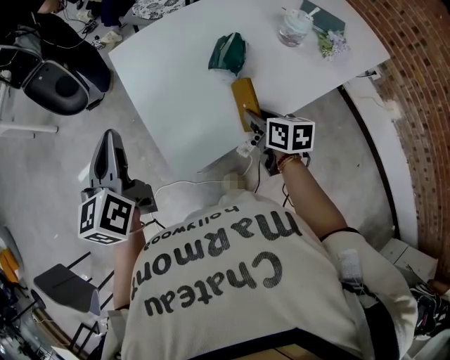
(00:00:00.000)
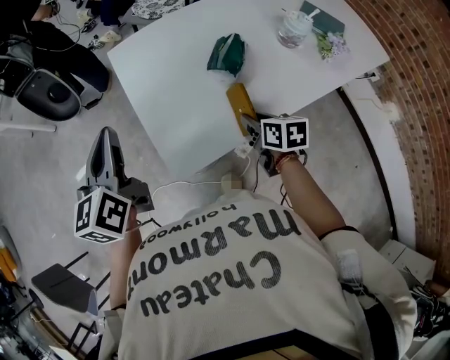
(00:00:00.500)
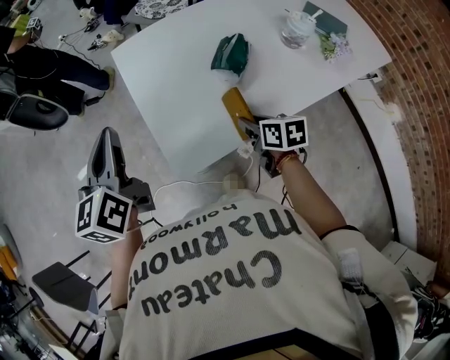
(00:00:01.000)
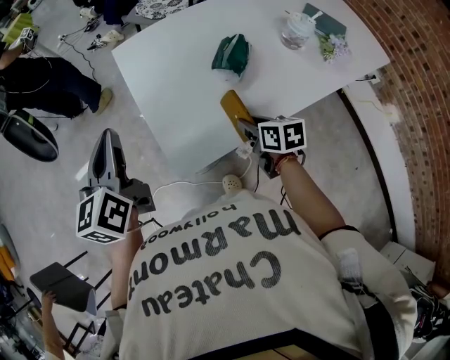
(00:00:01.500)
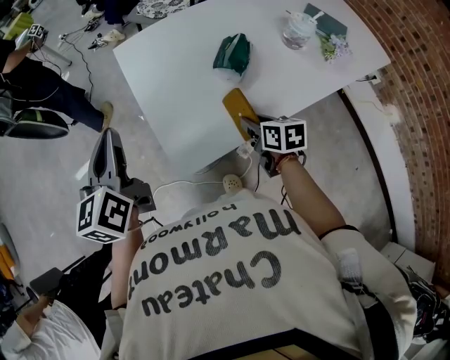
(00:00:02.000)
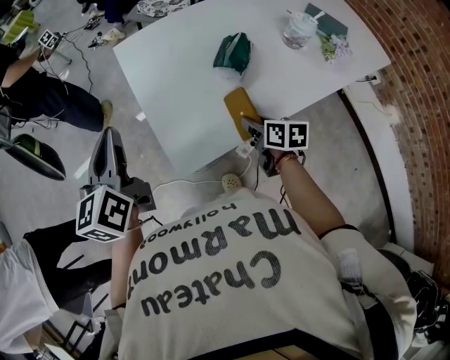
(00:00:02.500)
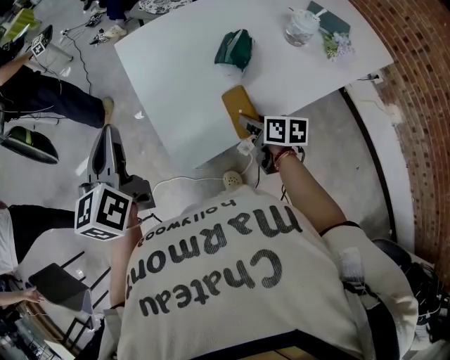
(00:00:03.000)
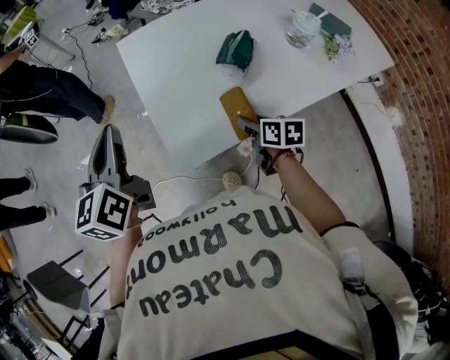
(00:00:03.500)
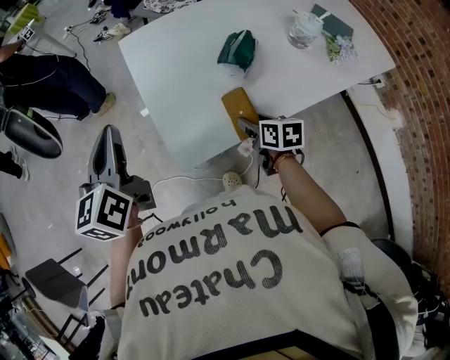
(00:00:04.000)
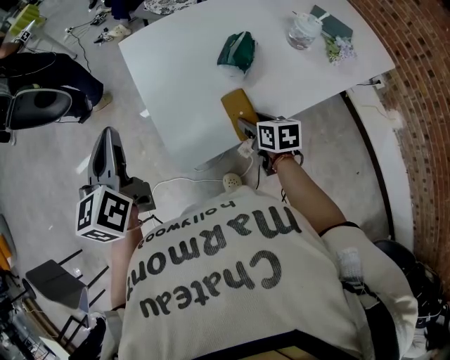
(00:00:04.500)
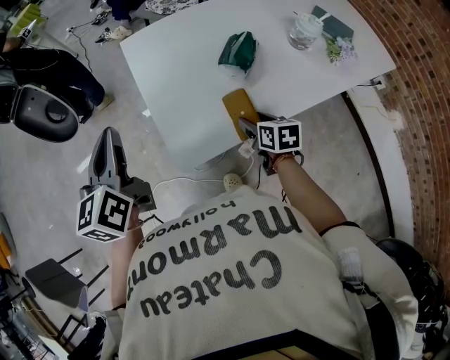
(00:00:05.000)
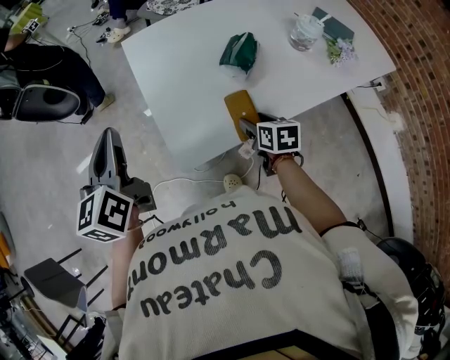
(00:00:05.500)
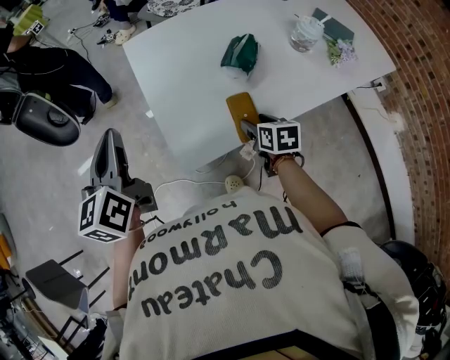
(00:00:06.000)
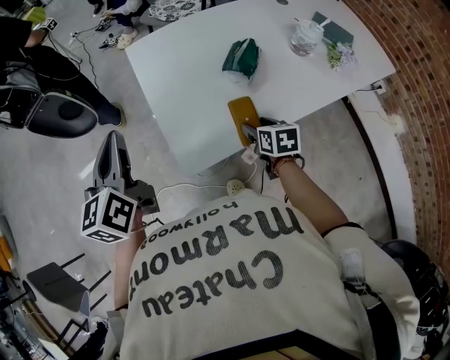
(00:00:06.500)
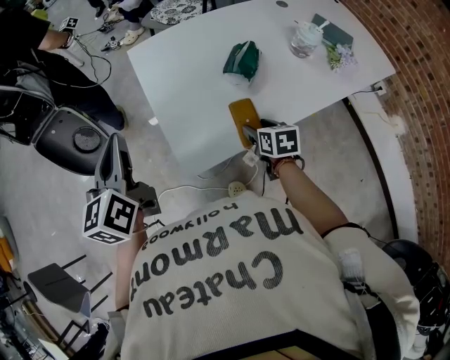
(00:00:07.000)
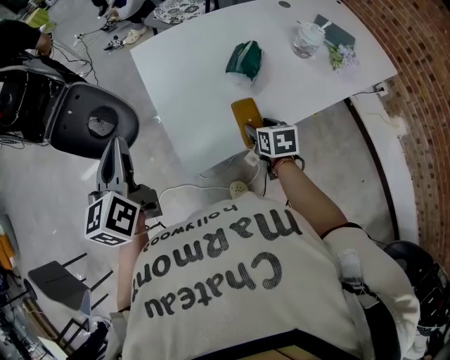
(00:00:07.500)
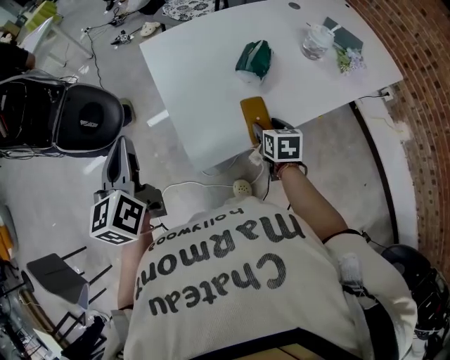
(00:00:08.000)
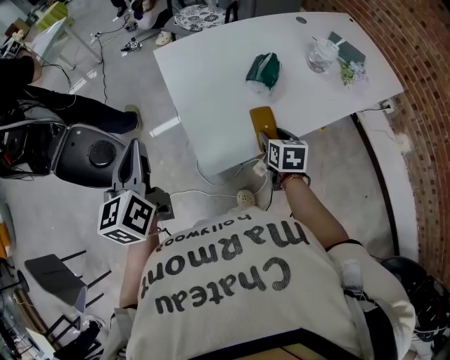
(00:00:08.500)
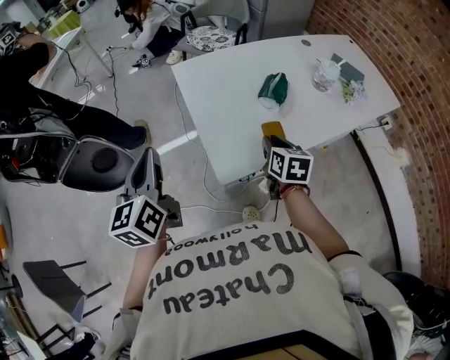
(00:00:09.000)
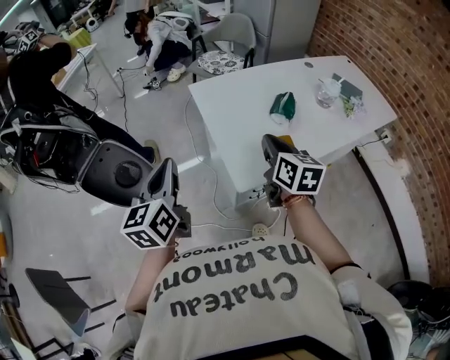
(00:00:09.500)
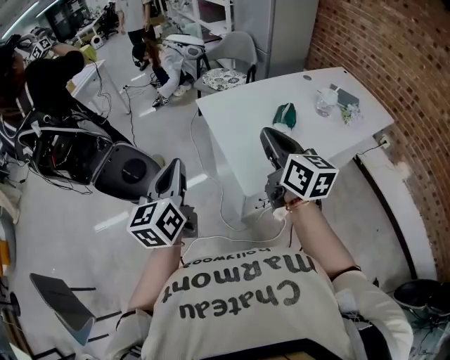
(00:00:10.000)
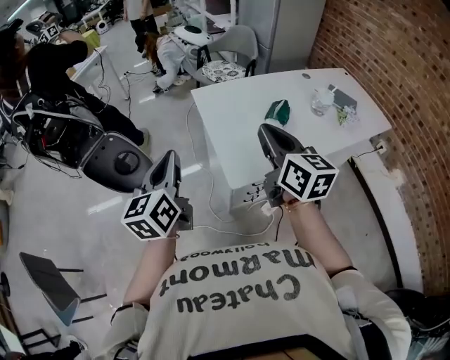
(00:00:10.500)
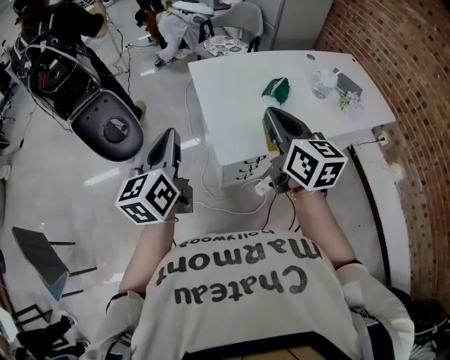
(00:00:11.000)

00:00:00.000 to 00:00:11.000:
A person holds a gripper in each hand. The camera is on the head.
00:00:00.000 to 00:00:03.500: The grippers make only small movements.
00:00:03.500 to 00:00:05.500: The right gripper opens up.
00:00:05.500 to 00:00:07.500: The grippers make only small movements.
00:00:07.500 to 00:00:09.000: The left gripper travels to the left by some 5 cm. The right gripper shifts roughly 15 cm upward and to the left, and closes.
00:00:09.000 to 00:00:11.000: The right gripper is displaced upward and backward by roughly 25 cm, and rotates approximately 30 degrees. The left gripper shifts some 10 cm backward.

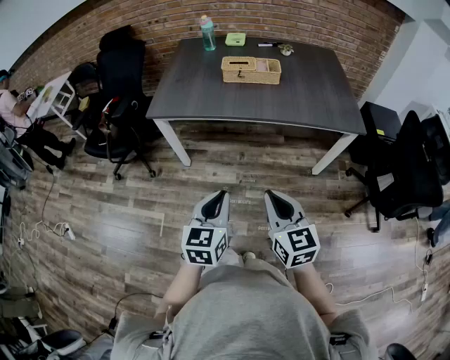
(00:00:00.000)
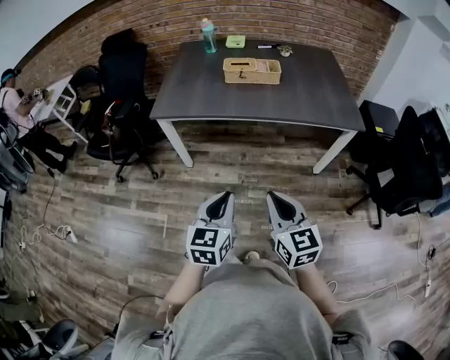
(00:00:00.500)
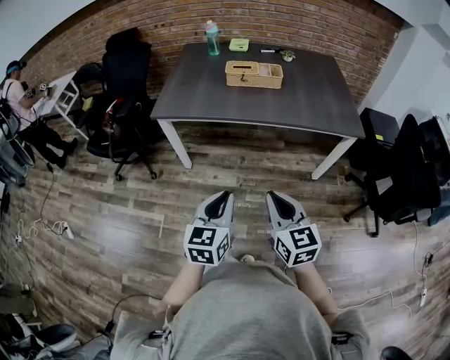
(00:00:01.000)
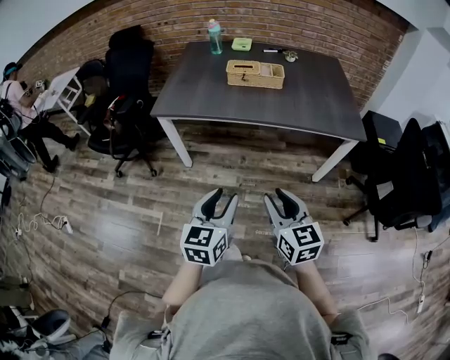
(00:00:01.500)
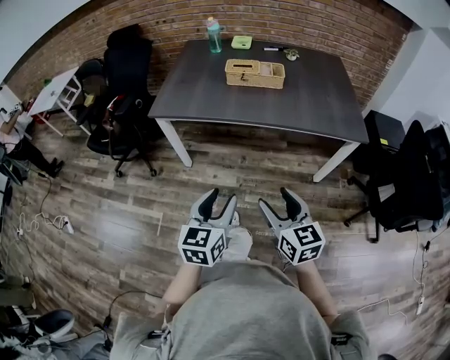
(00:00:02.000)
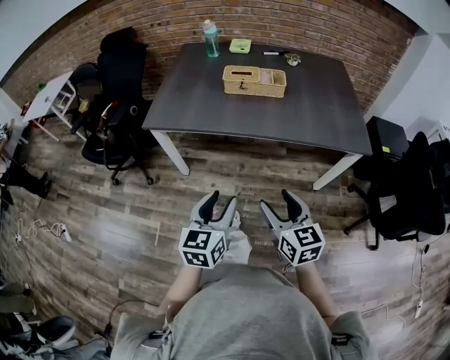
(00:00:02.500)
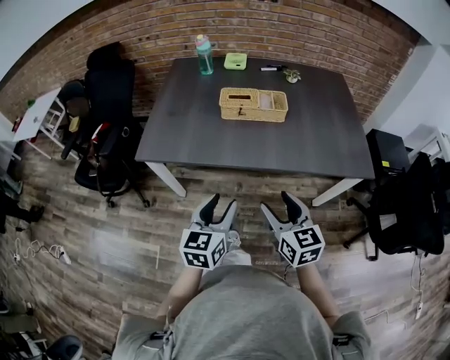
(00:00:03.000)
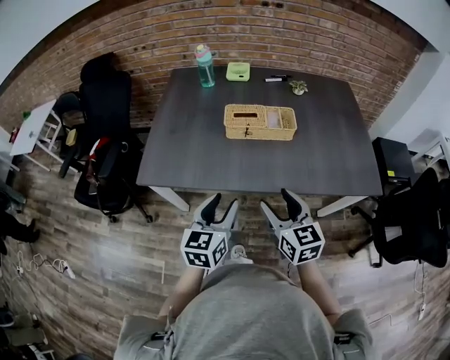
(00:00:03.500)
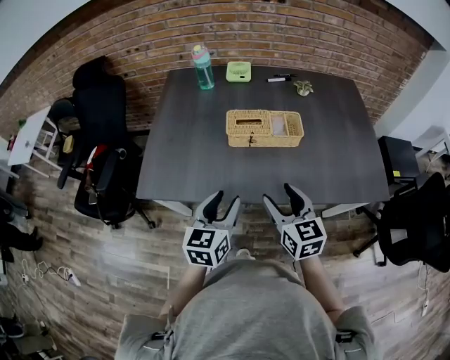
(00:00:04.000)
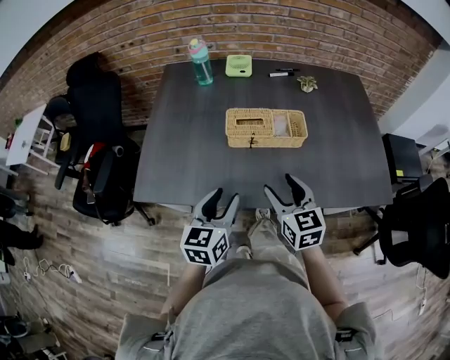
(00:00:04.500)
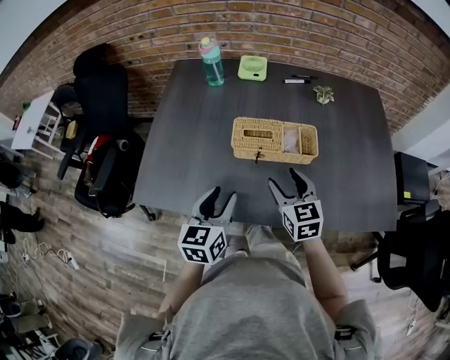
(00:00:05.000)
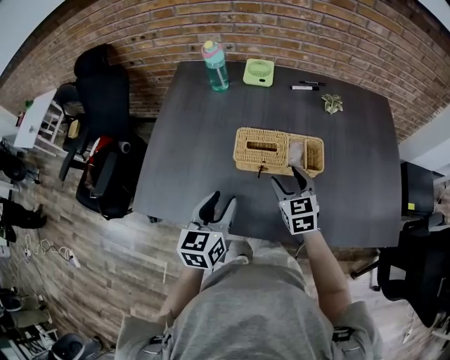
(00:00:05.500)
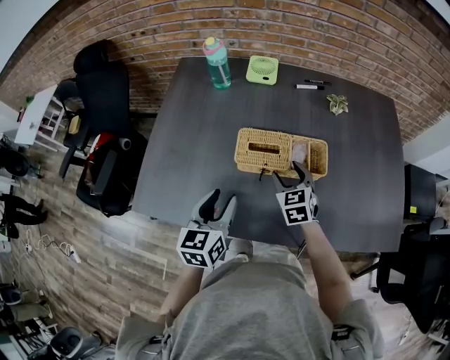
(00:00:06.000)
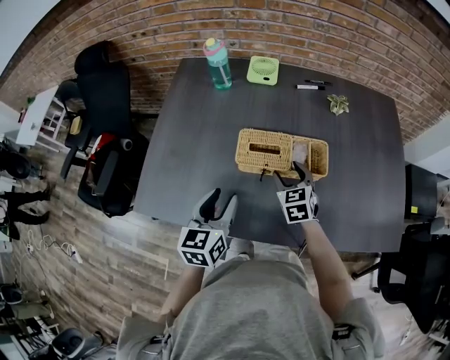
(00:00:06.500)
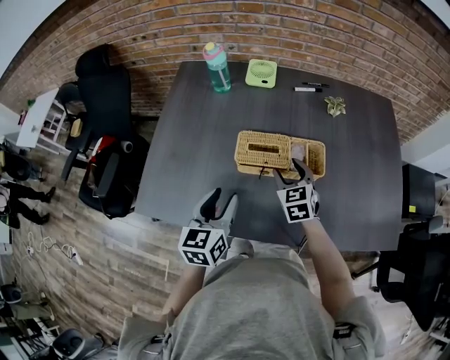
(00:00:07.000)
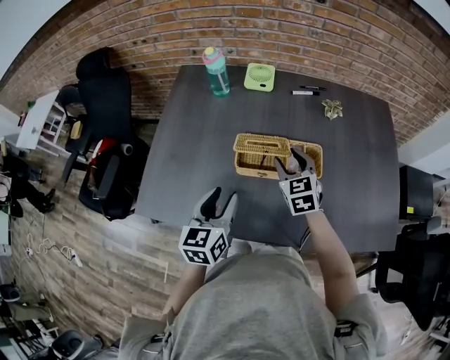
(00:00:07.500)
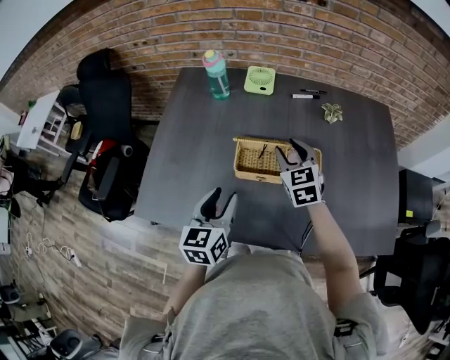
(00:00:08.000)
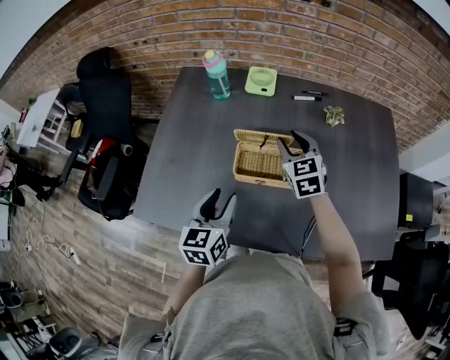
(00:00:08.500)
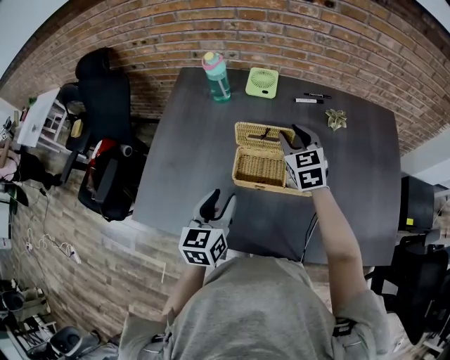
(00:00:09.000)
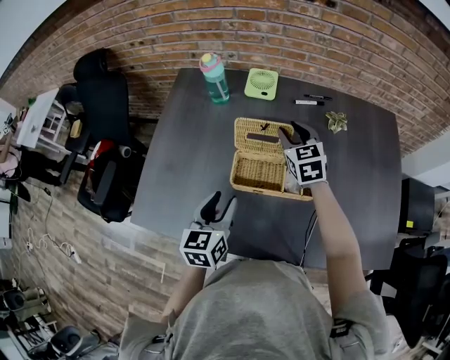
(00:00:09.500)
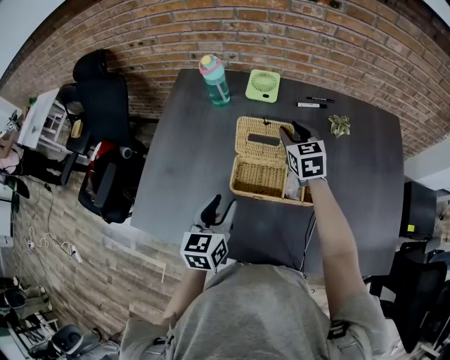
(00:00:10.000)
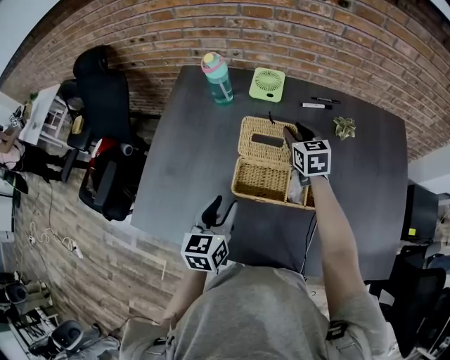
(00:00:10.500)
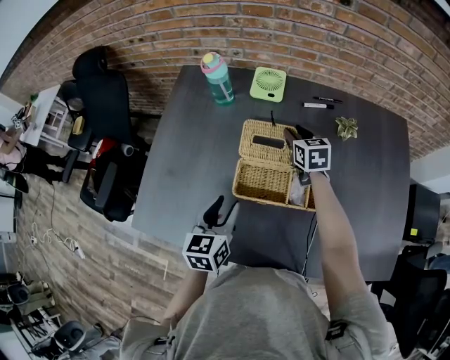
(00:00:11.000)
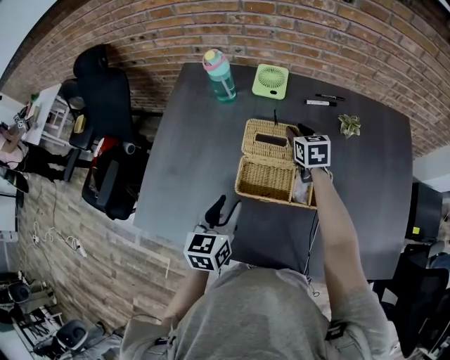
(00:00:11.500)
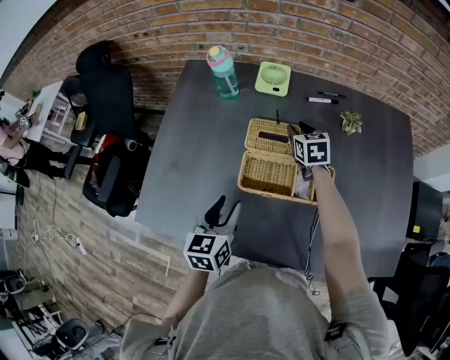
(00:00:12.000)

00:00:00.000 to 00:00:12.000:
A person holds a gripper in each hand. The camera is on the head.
00:00:00.000 to 00:00:02.000: The right gripper opens its fingers; the left gripper opens up.
00:00:02.000 to 00:00:04.000: The pair of grippers is taken forward, some 40 cm.
00:00:04.000 to 00:00:06.000: The left gripper shifts roughly 15 cm forward. Meanwhile the right gripper goes approximately 30 cm forward and downward, and swivels roughly 20 degrees.
00:00:06.000 to 00:00:08.000: The right gripper is displaced upward and forward by about 10 cm, and closes up.
00:00:08.000 to 00:00:10.000: The right gripper travels forward by about 15 cm; the left gripper is displaced forward by some 5 cm.
00:00:10.000 to 00:00:12.000: The right gripper is displaced downward by some 5 cm.

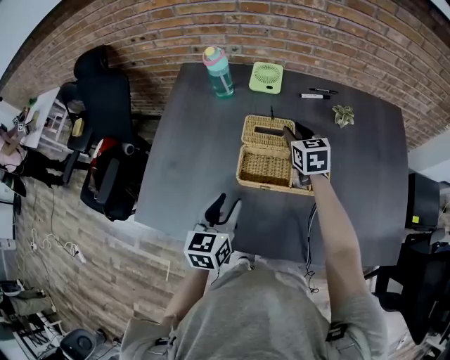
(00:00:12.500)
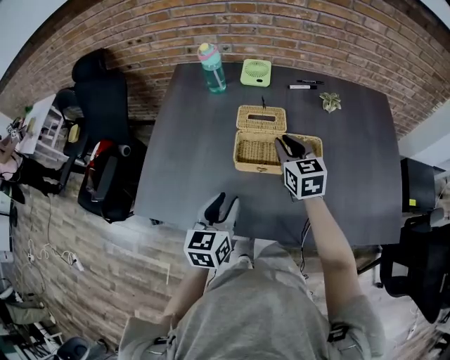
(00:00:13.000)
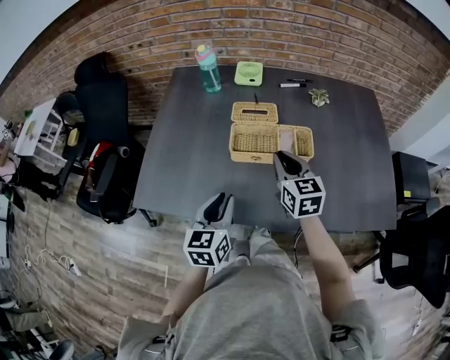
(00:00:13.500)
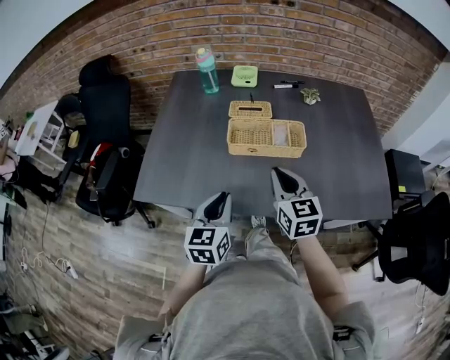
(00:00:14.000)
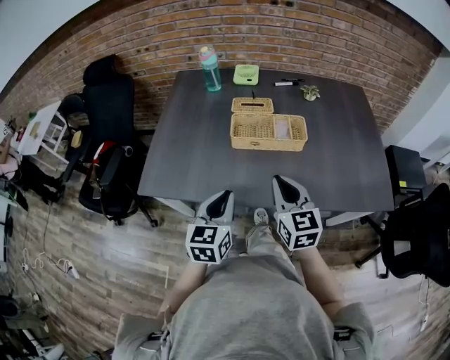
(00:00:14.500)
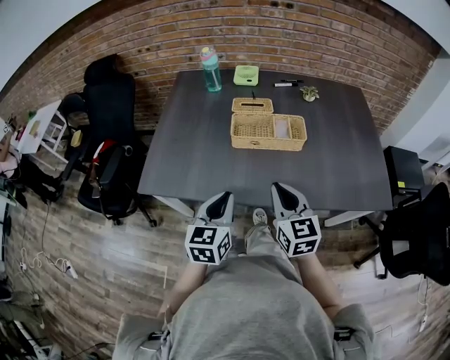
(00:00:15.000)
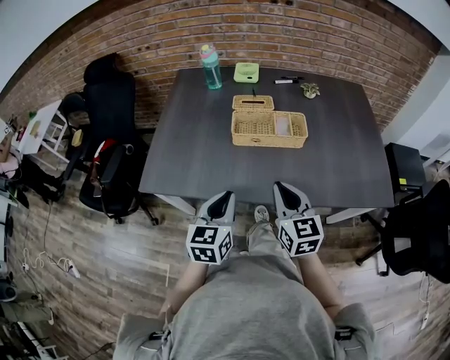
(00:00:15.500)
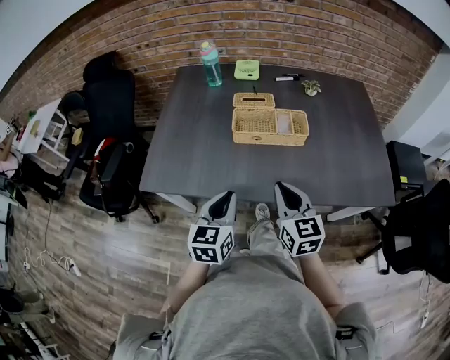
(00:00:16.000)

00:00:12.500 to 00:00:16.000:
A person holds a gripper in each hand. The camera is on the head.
00:00:12.500 to 00:00:14.500: The right gripper is displaced backward by some 40 cm, and closes its fingers, while the left gripper heads backward, covering about 20 cm, and closes its fingers.
00:00:14.500 to 00:00:16.000: The grippers move only a little.
